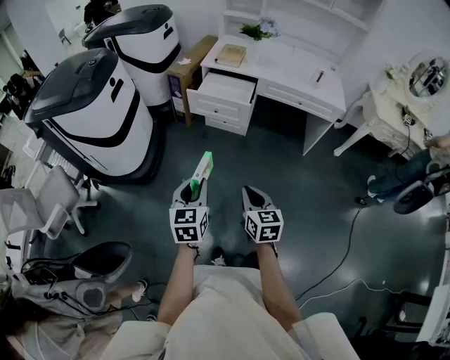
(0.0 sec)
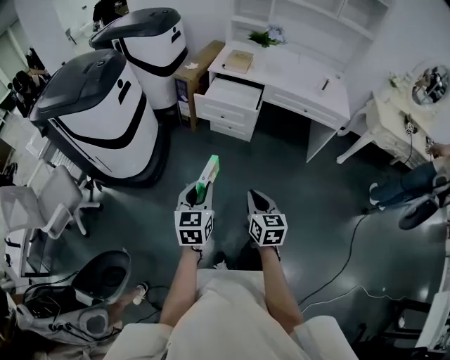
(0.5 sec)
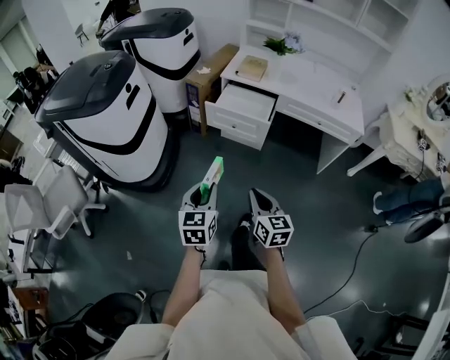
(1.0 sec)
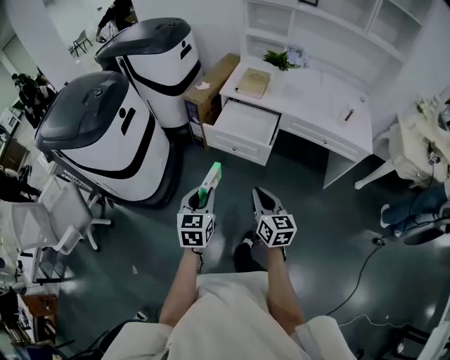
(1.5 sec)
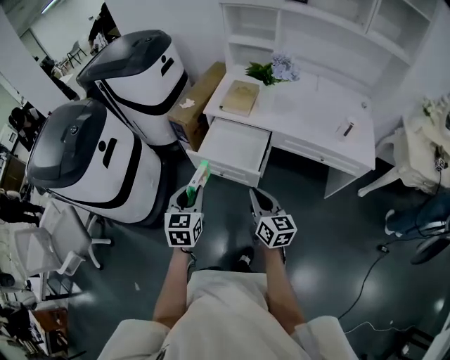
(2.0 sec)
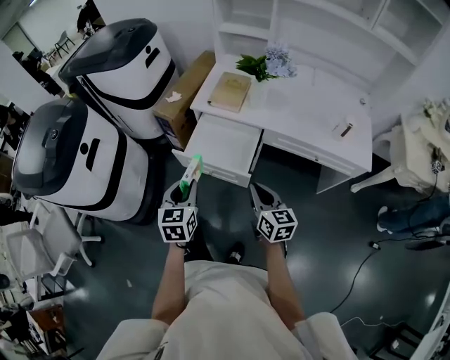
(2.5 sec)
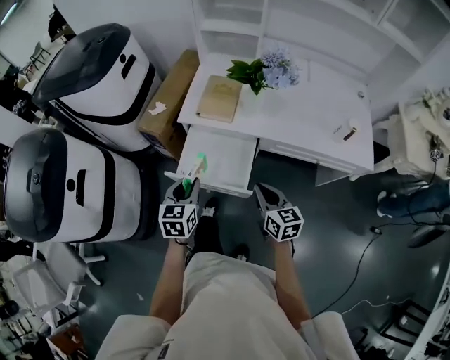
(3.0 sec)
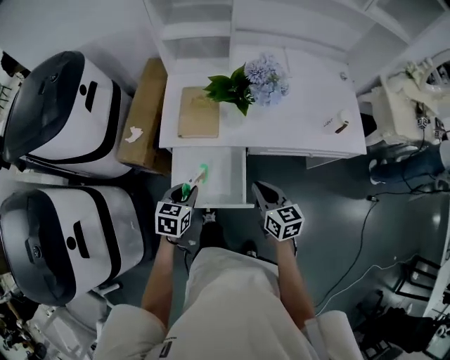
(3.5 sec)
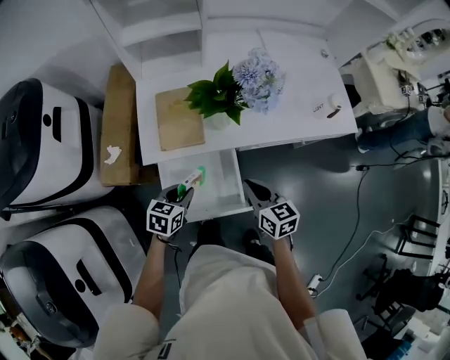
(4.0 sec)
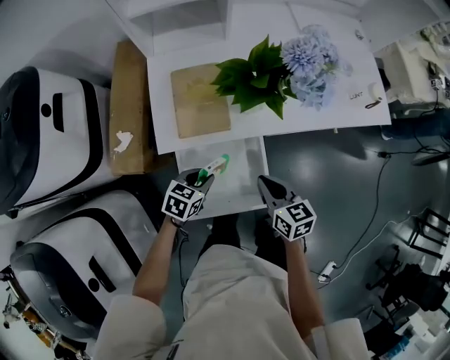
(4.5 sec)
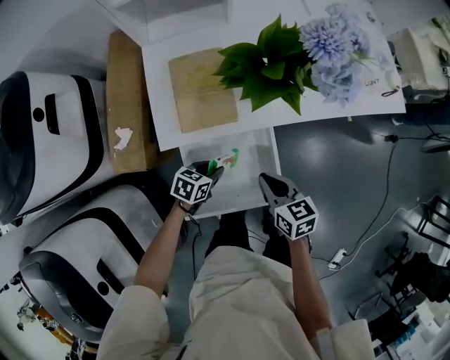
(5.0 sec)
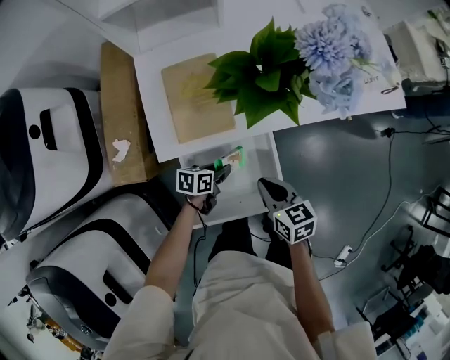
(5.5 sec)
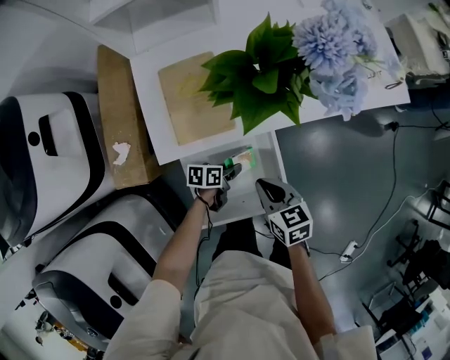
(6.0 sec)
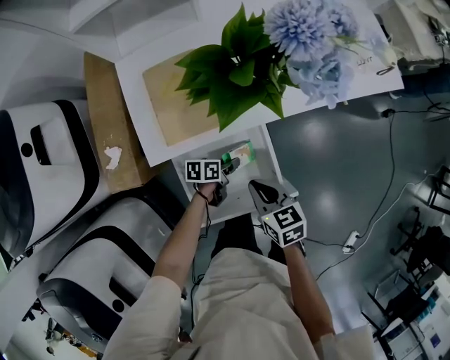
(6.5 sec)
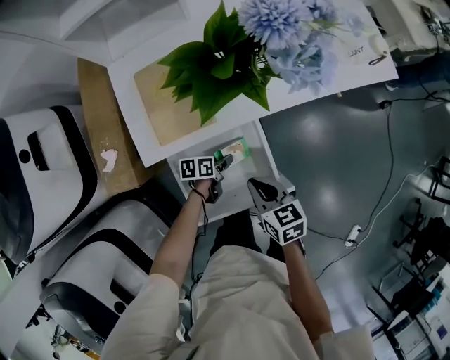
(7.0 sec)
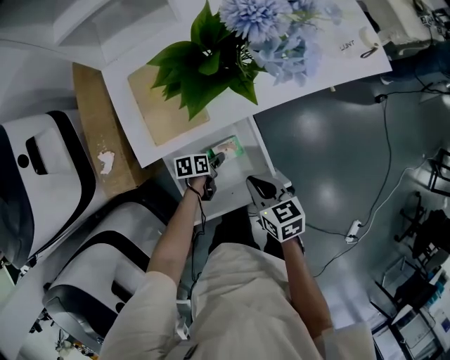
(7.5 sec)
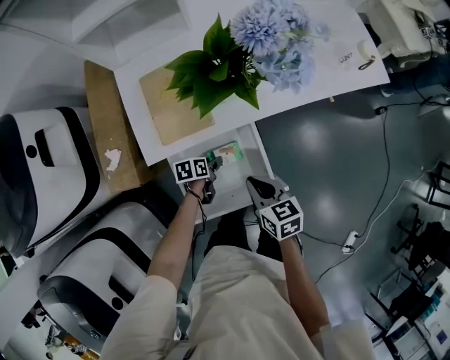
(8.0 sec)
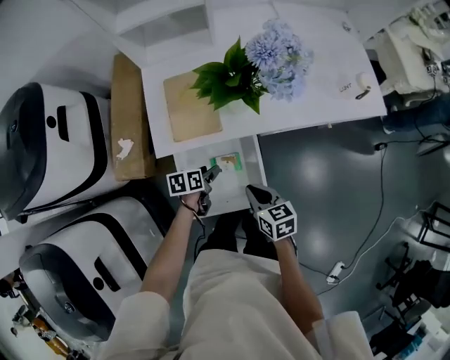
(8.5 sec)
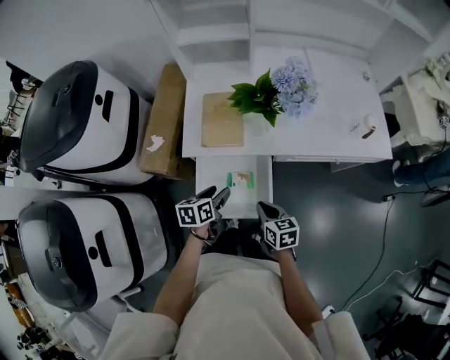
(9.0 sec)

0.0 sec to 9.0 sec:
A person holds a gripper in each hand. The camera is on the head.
0.0 sec to 2.0 sec: Both grippers move forward, roughly 40 cm.
2.0 sec to 4.5 sec: The right gripper shifts by roughly 35 cm, and rotates approximately 30 degrees; the left gripper moves some 50 cm, and changes its angle by roughly 60 degrees.
4.5 sec to 7.0 sec: The left gripper goes roughly 15 cm downward, and swivels some 40 degrees. Meanwhile the right gripper is displaced downward by approximately 5 cm.
7.0 sec to 9.0 sec: The right gripper shifts by roughly 5 cm. Meanwhile the left gripper is displaced upward by about 25 cm, rotates roughly 40 degrees, and opens.

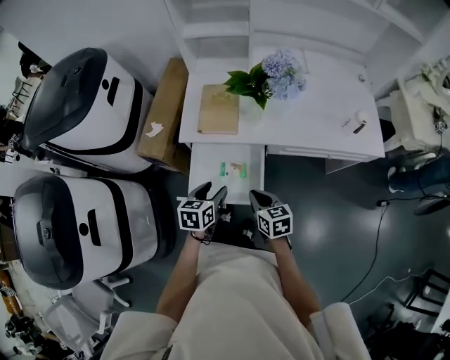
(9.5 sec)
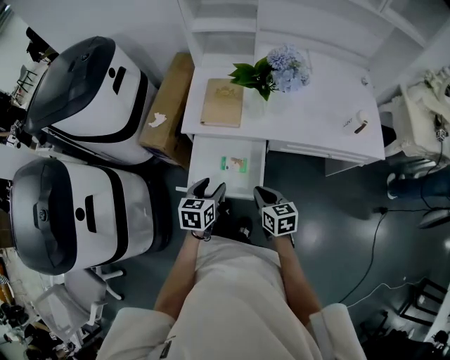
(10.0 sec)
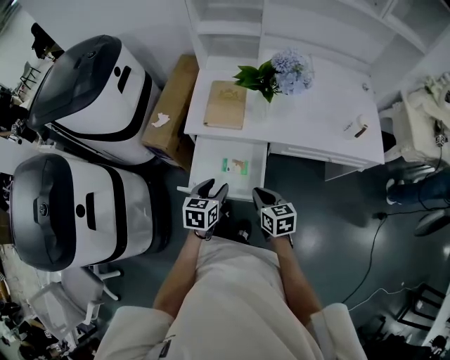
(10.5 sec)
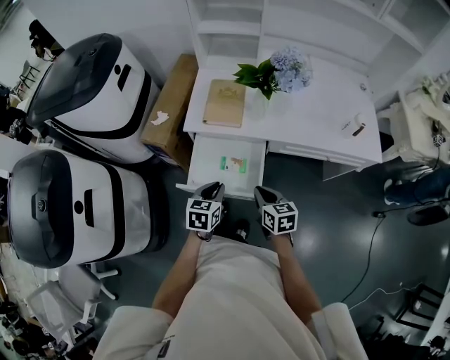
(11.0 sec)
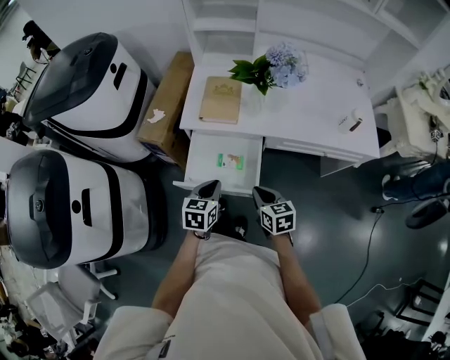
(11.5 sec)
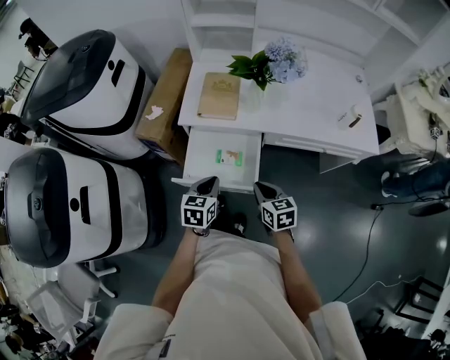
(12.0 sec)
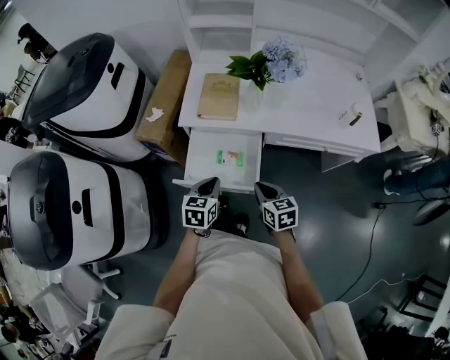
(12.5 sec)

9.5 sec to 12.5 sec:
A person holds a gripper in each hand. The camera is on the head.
9.5 sec to 11.0 sec: The left gripper closes.
11.0 sec to 12.5 sec: The grippers move only a little.

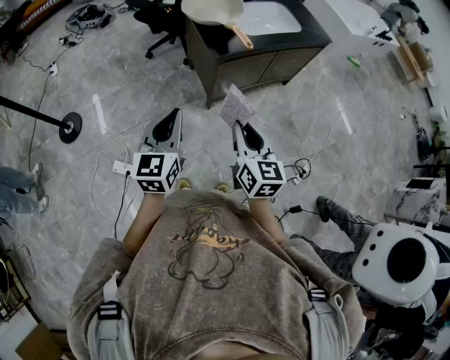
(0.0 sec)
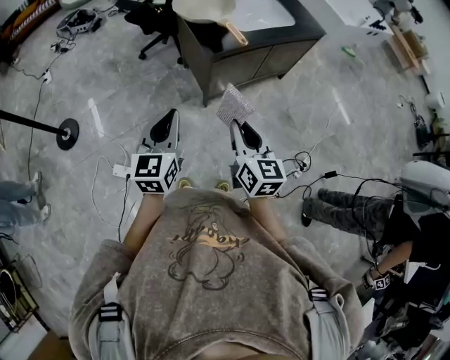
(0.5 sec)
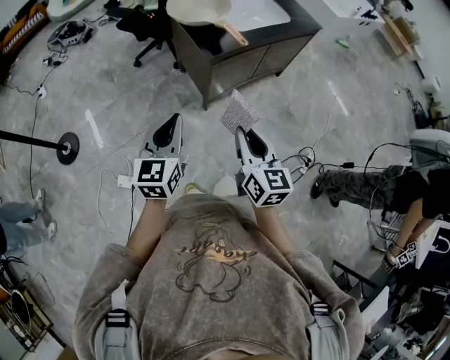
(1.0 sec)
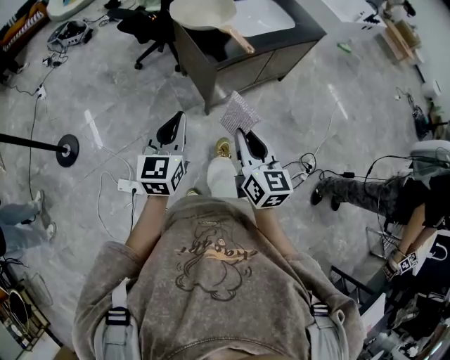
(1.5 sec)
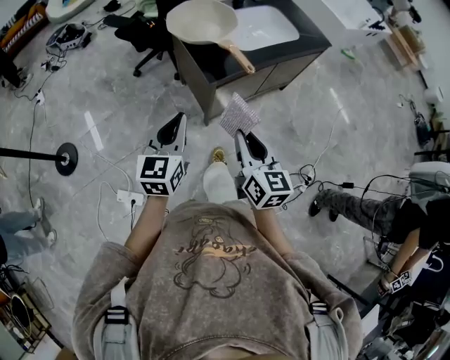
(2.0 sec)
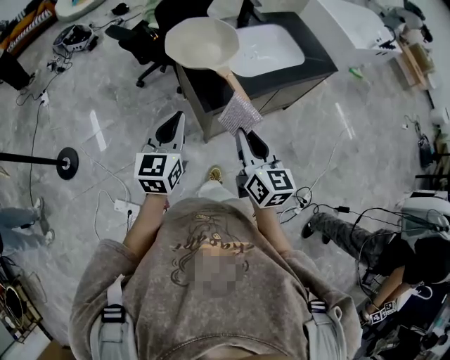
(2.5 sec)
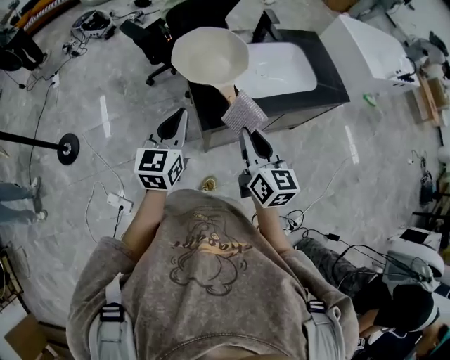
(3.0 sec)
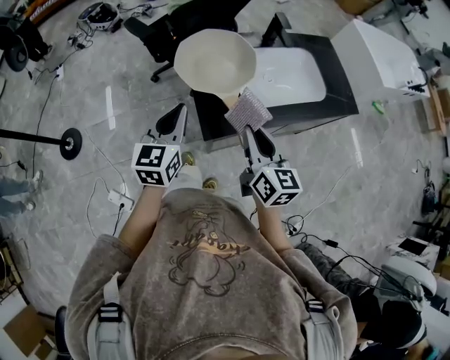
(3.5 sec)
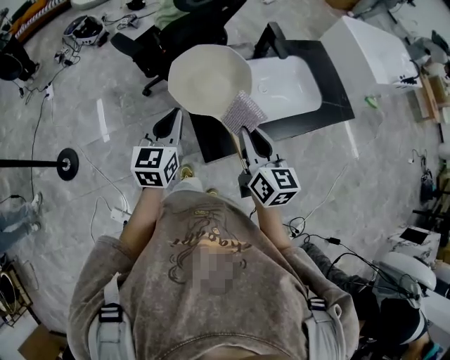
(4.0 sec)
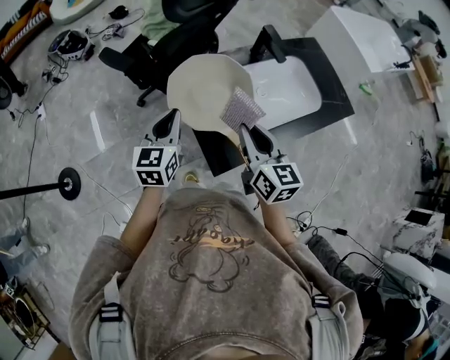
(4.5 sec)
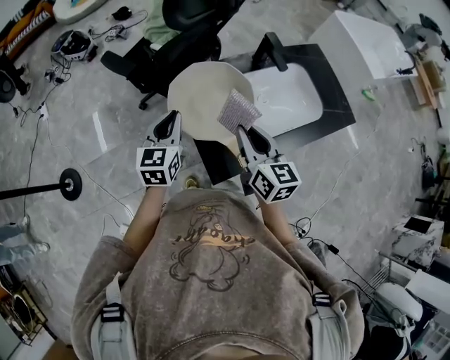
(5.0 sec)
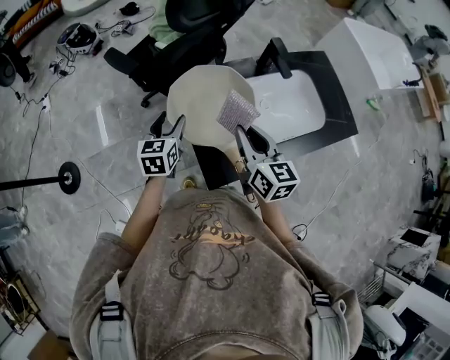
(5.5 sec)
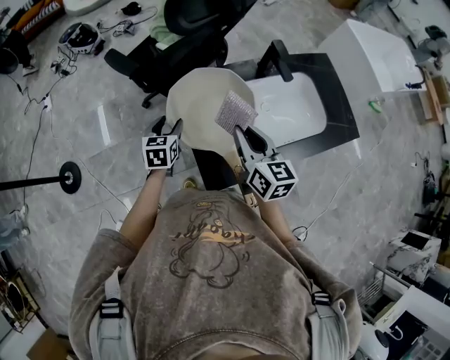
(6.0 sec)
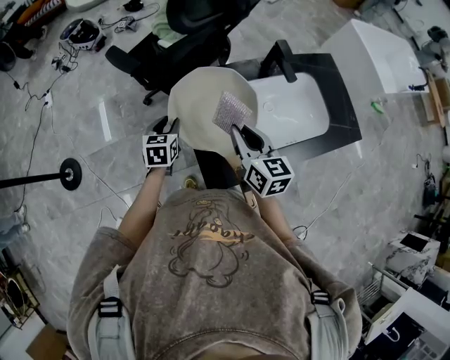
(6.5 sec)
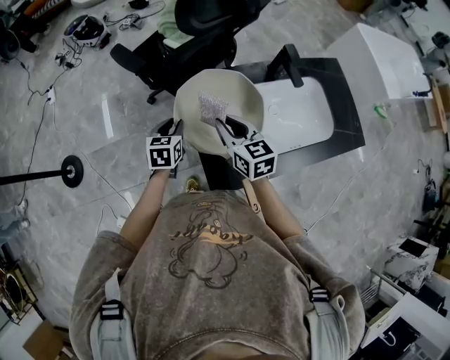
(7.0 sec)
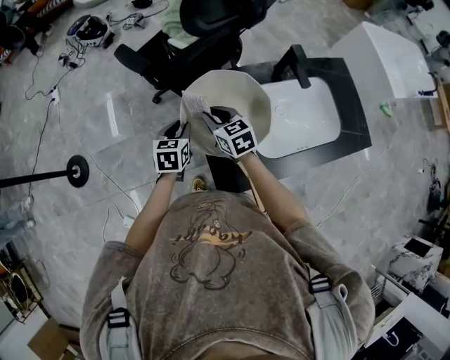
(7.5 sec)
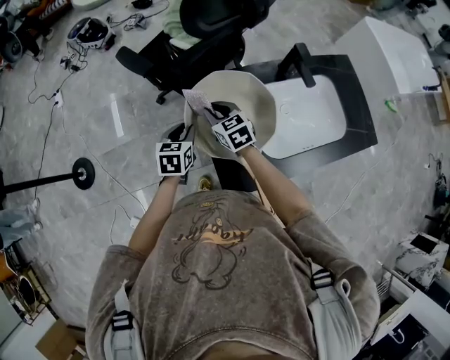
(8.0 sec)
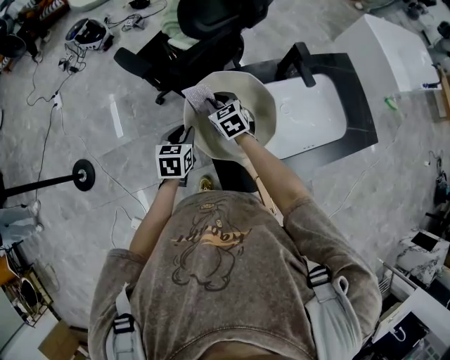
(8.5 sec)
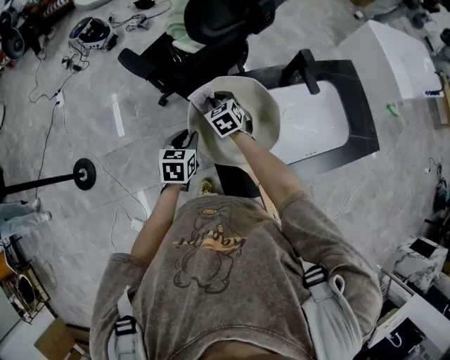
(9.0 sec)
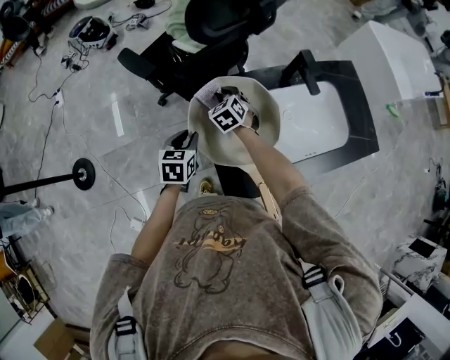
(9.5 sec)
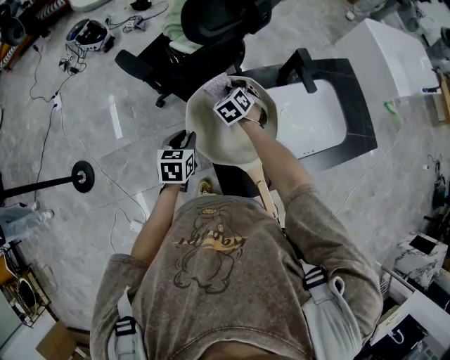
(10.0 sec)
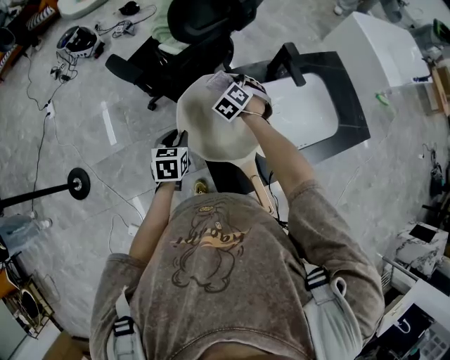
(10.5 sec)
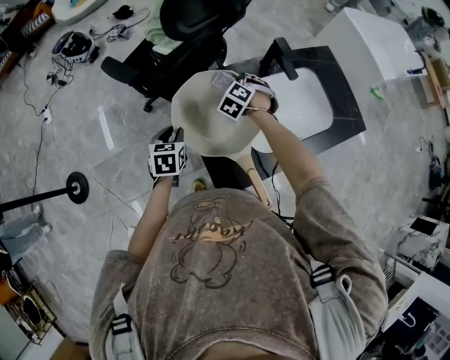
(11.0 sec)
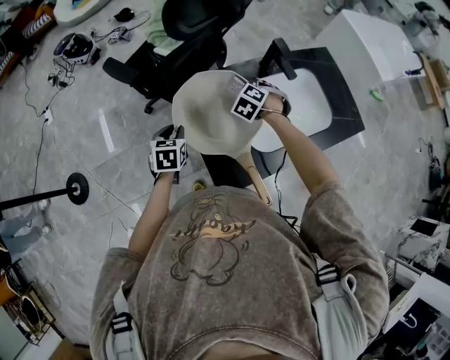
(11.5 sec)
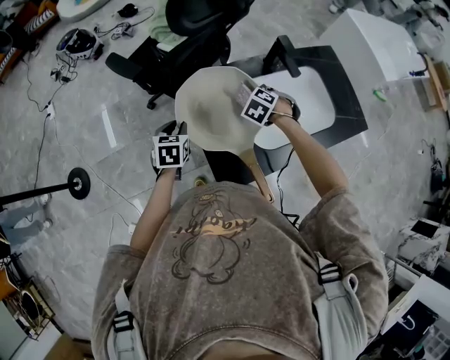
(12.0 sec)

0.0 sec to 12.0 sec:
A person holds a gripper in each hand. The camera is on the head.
0.0 sec to 2.0 sec: Both grippers move forward, some 15 cm.
2.0 sec to 4.0 sec: Both grippers travel together forward, some 35 cm.
4.0 sec to 6.0 sec: The left gripper shifts roughly 20 cm downward and forward, rotates roughly 20 degrees, and opens its fingers. The right gripper heads forward, covering approximately 15 cm.
6.0 sec to 8.0 sec: The left gripper closes; the right gripper goes about 25 cm downward, forward and to the left, and swivels approximately 30 degrees.
8.0 sec to 10.0 sec: The right gripper shifts about 15 cm forward and to the right, and rotates about 30 degrees.
10.0 sec to 12.0 sec: The right gripper heads to the right and backward, covering about 15 cm, and rotates approximately 30 degrees.

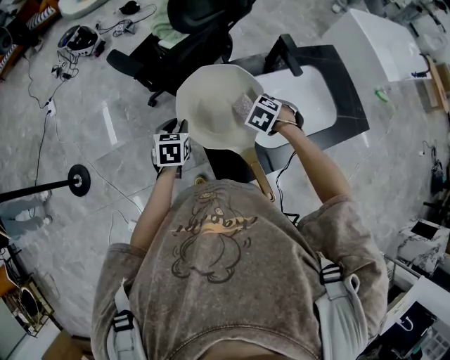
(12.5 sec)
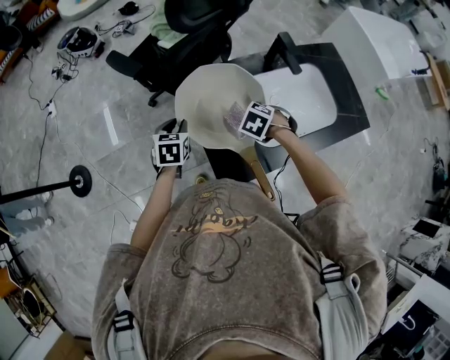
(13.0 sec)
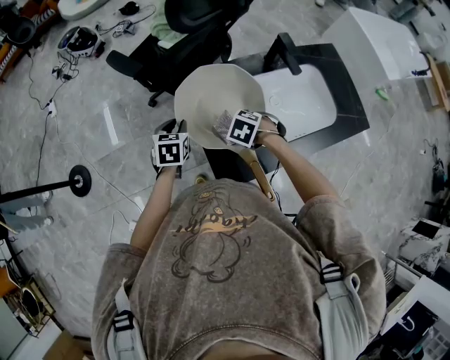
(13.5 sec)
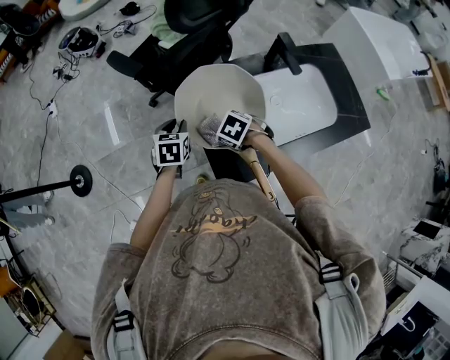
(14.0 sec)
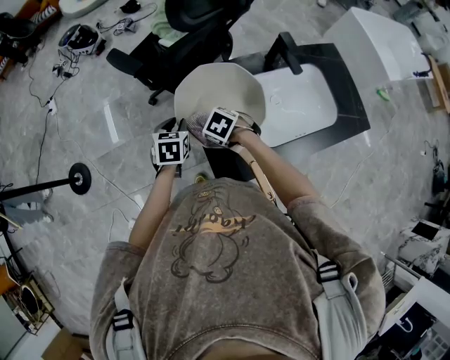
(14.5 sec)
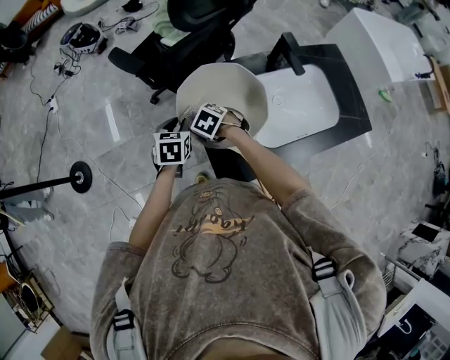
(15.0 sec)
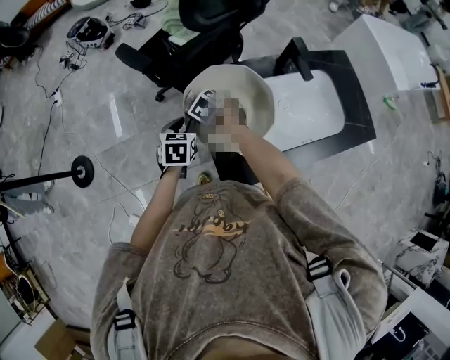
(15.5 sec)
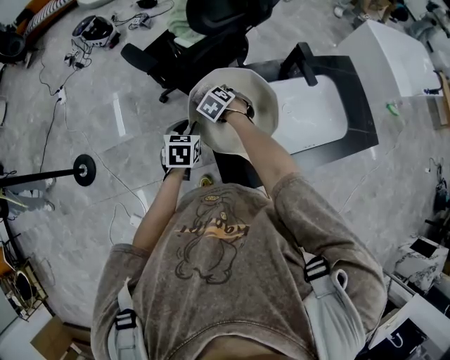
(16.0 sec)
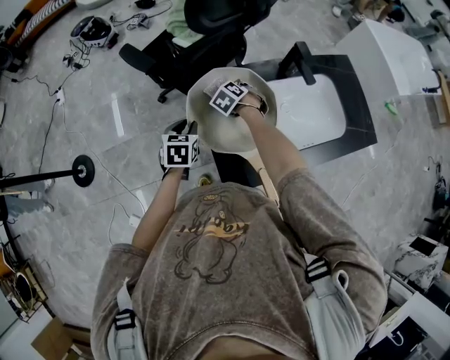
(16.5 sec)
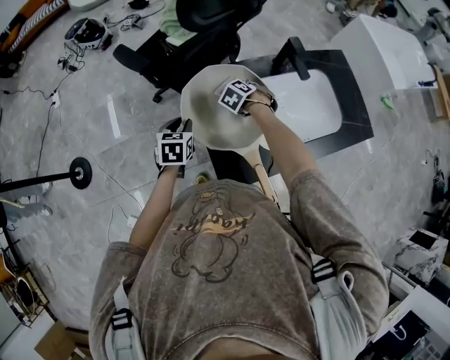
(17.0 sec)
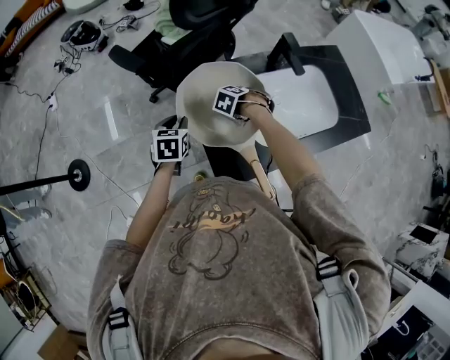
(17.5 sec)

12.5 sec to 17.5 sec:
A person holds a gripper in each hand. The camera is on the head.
12.5 sec to 15.0 sec: The right gripper moves roughly 20 cm.
15.0 sec to 17.5 sec: The right gripper changes place by about 15 cm, and swivels approximately 30 degrees.
